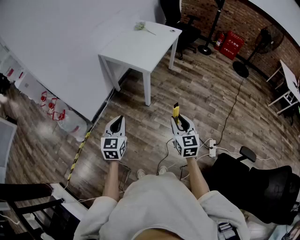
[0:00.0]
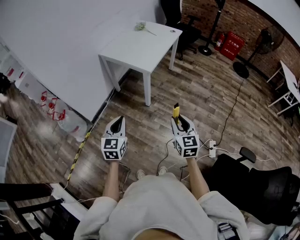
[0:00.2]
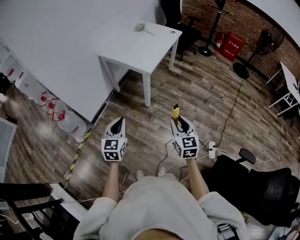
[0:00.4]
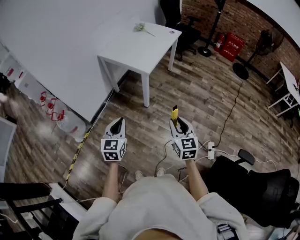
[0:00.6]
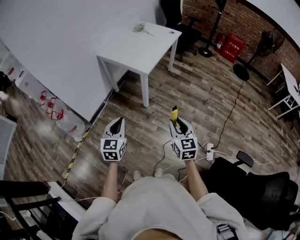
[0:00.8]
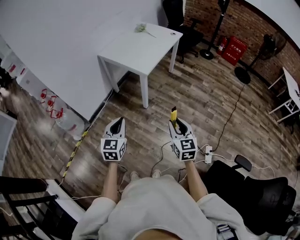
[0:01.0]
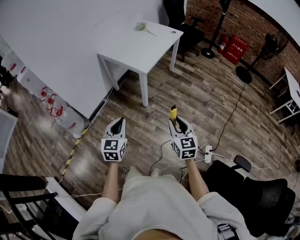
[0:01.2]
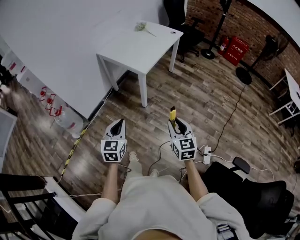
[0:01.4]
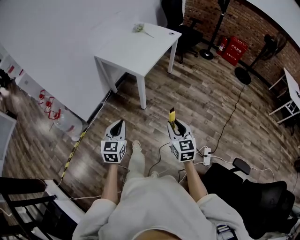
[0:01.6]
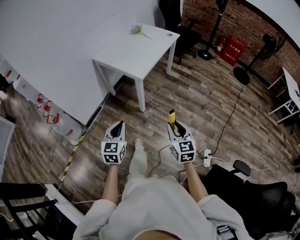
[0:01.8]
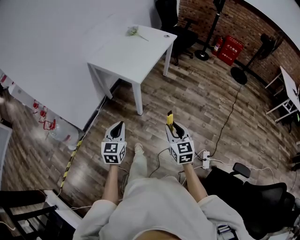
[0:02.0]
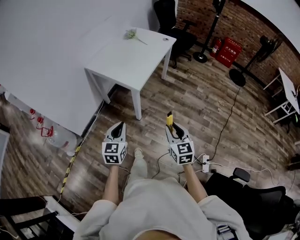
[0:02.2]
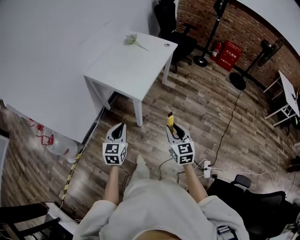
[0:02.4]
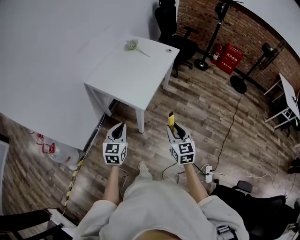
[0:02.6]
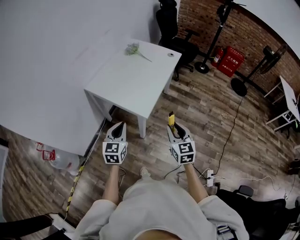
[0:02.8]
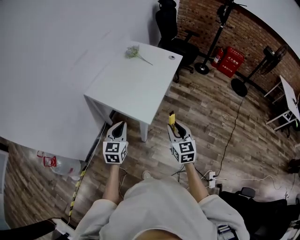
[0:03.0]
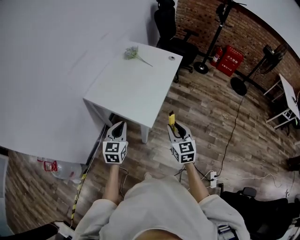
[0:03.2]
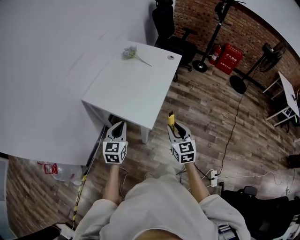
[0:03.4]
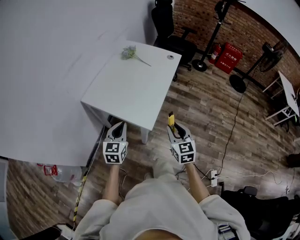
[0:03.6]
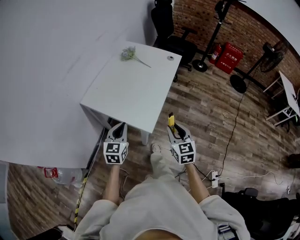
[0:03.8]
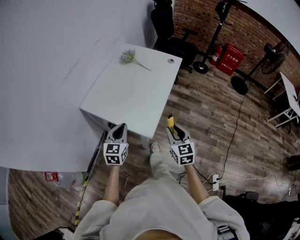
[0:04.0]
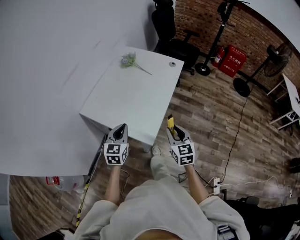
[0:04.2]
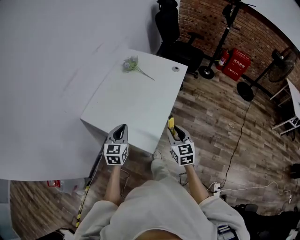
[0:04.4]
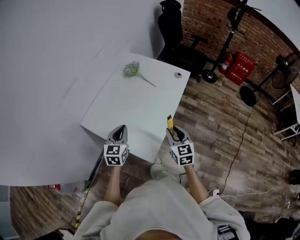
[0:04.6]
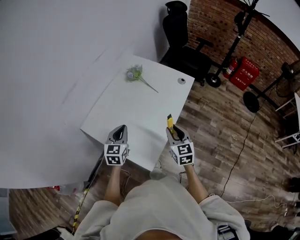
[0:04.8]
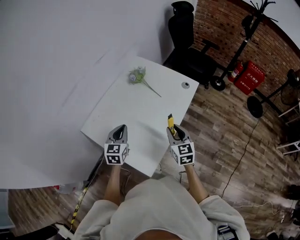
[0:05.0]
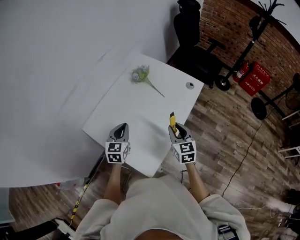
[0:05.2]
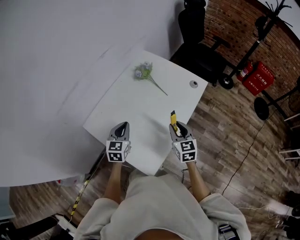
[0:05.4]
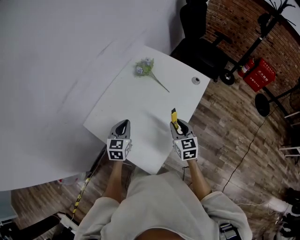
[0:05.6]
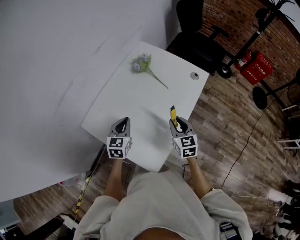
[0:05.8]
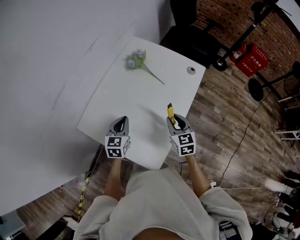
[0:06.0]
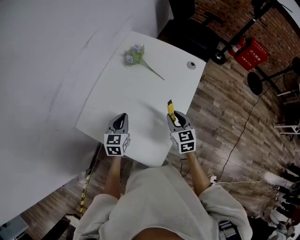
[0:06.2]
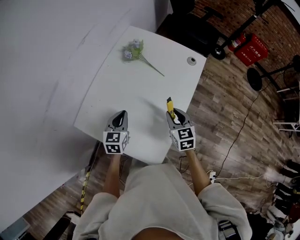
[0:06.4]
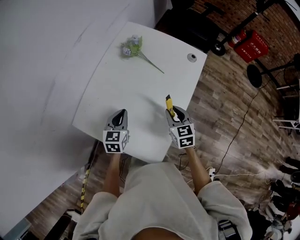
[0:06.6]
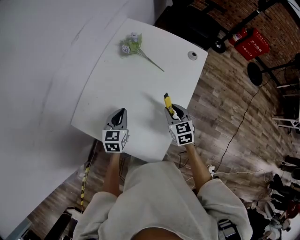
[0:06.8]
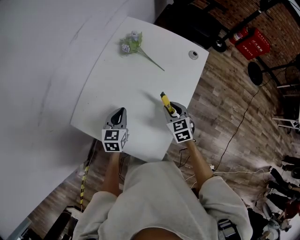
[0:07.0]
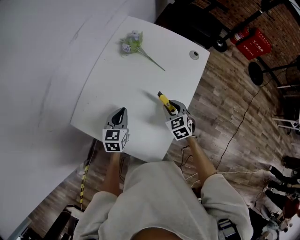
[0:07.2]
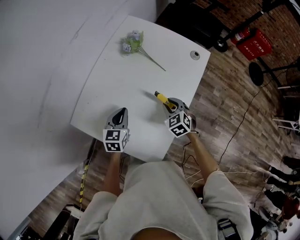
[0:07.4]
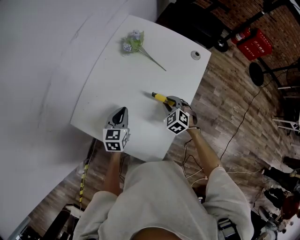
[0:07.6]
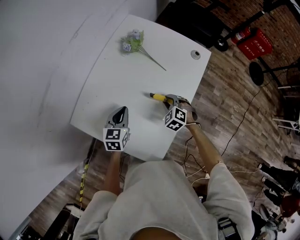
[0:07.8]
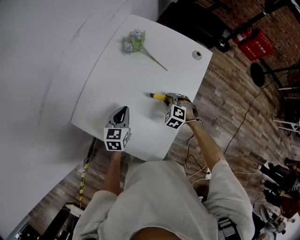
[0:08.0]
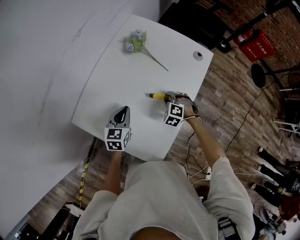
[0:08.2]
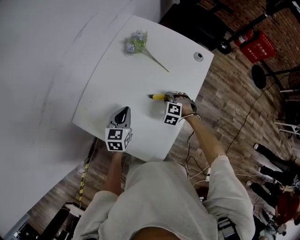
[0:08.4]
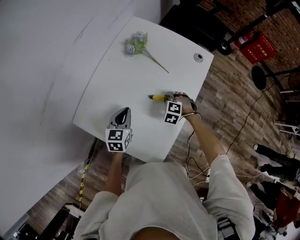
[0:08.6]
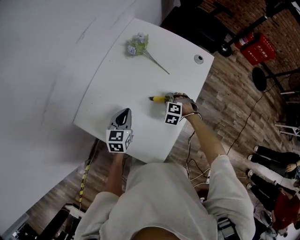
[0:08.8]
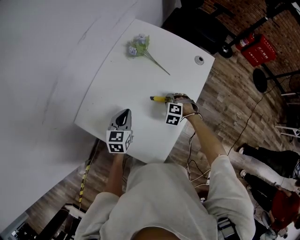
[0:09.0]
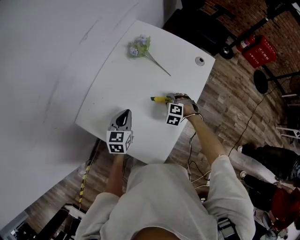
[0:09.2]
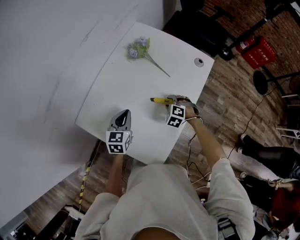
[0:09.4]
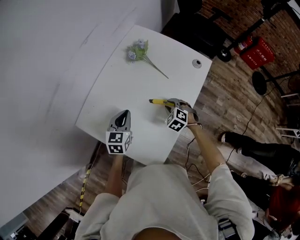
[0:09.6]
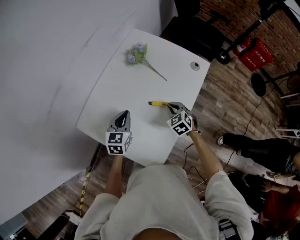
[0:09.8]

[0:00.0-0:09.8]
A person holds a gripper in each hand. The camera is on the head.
0:00.0 to 0:01.4: Both grippers travel together to the right, some 10 cm.
0:01.4 to 0:02.8: Both grippers travel together forward, approximately 40 cm.
0:02.8 to 0:04.2: The grippers both shift forward by about 20 cm.
0:04.2 to 0:05.6: The grippers both shift forward by approximately 30 cm.
0:05.6 to 0:07.0: The left gripper is displaced downward and forward by approximately 10 cm, while the right gripper shifts approximately 10 cm downward.
0:07.0 to 0:08.4: The right gripper heads downward, covering some 10 cm, and rolls counterclockwise, seen from behind, by some 50 degrees.
0:08.4 to 0:09.8: The right gripper is displaced upward by some 5 cm, rotates approximately 40 degrees, and closes.

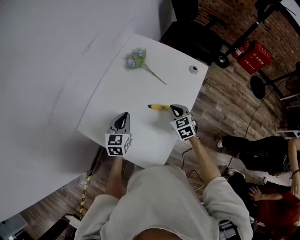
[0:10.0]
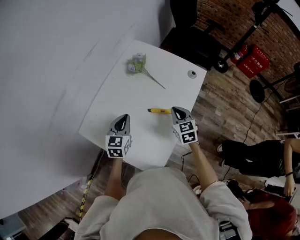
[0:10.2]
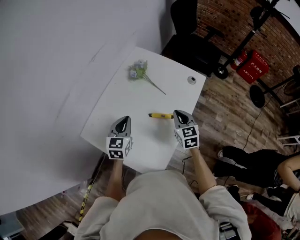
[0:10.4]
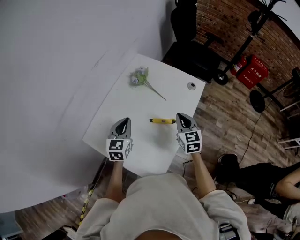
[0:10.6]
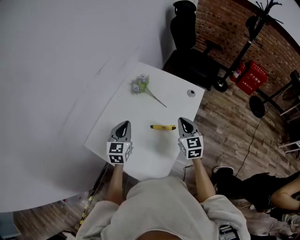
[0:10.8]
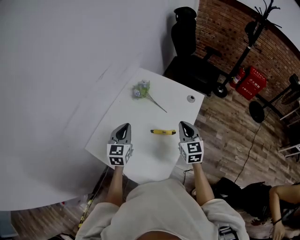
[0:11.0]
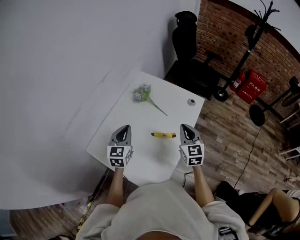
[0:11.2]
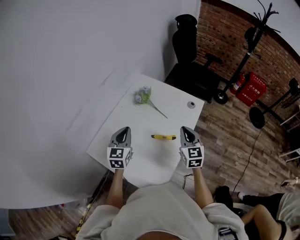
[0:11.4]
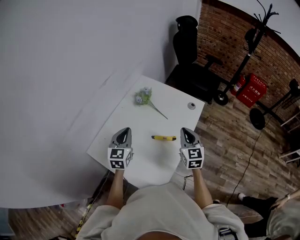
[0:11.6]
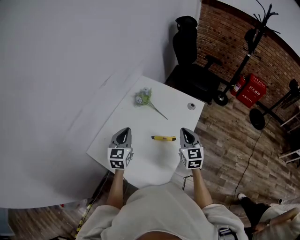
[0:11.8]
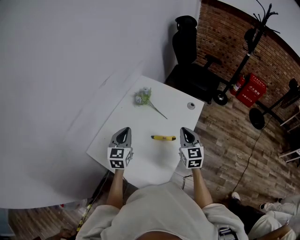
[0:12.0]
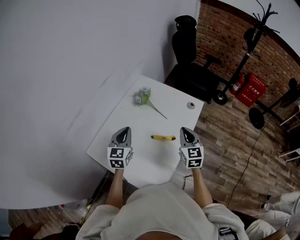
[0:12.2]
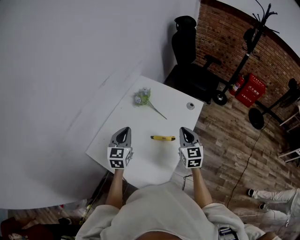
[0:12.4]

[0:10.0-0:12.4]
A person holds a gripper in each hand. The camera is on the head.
0:10.0 to 0:11.2: The left gripper moves upward, some 10 cm, while the right gripper moves upward, approximately 15 cm, and changes its angle by about 30 degrees.
0:11.2 to 0:12.4: Neither gripper changes place.

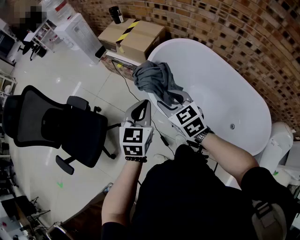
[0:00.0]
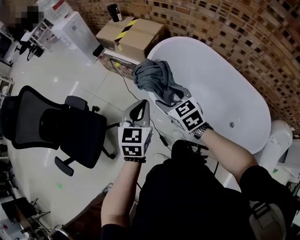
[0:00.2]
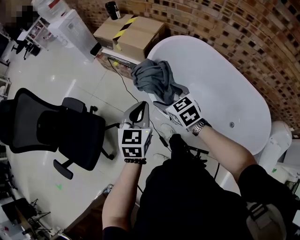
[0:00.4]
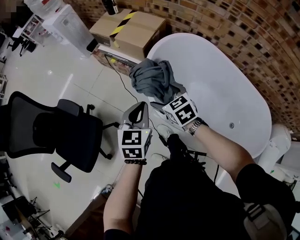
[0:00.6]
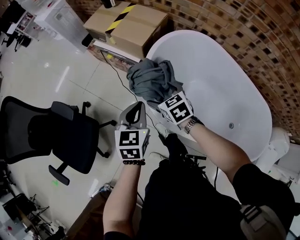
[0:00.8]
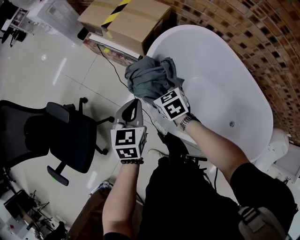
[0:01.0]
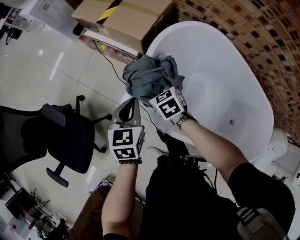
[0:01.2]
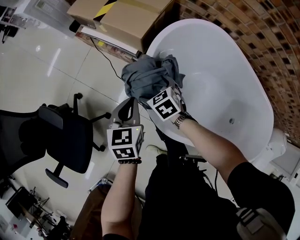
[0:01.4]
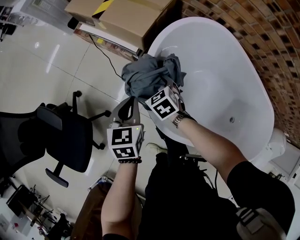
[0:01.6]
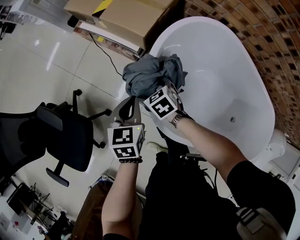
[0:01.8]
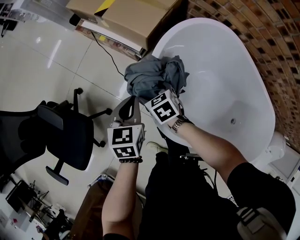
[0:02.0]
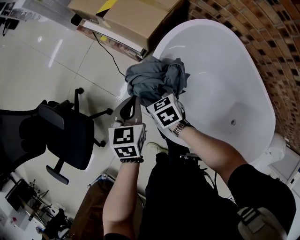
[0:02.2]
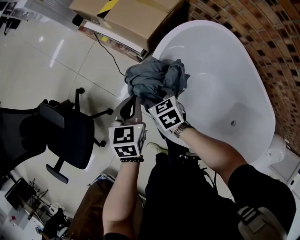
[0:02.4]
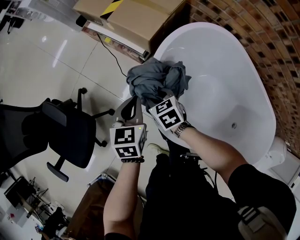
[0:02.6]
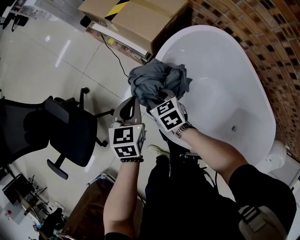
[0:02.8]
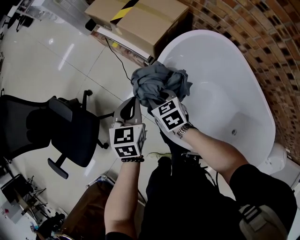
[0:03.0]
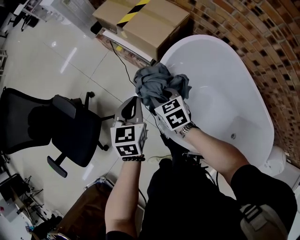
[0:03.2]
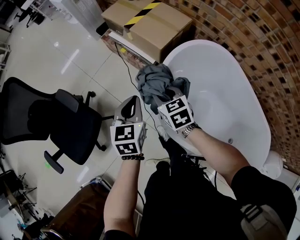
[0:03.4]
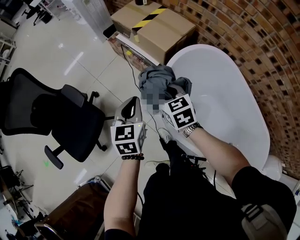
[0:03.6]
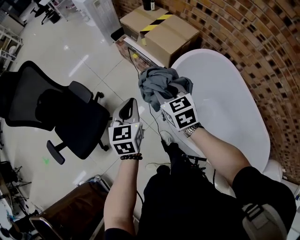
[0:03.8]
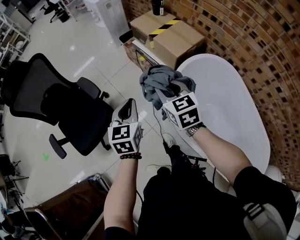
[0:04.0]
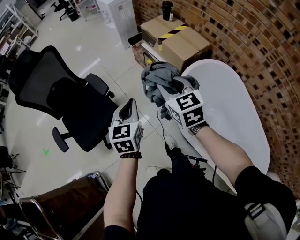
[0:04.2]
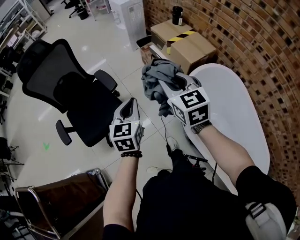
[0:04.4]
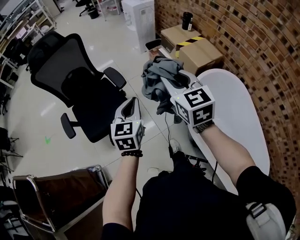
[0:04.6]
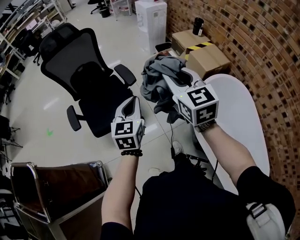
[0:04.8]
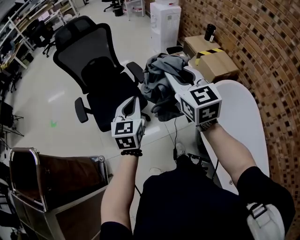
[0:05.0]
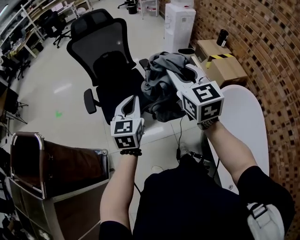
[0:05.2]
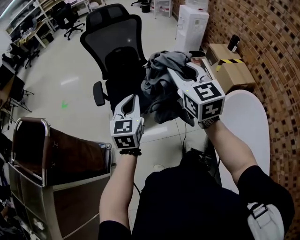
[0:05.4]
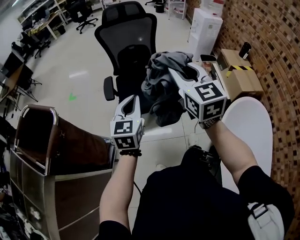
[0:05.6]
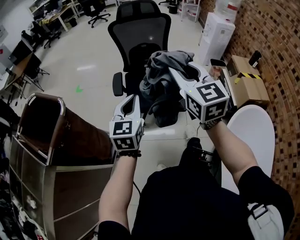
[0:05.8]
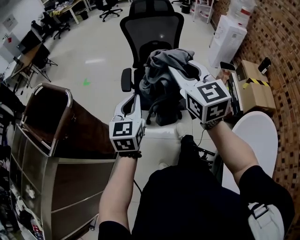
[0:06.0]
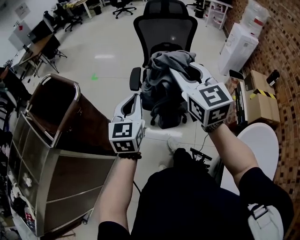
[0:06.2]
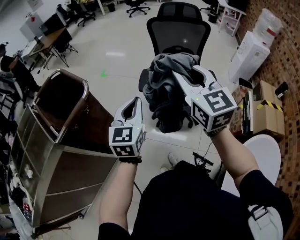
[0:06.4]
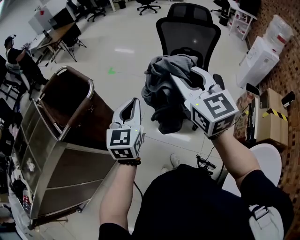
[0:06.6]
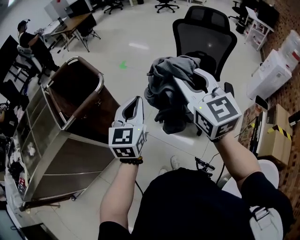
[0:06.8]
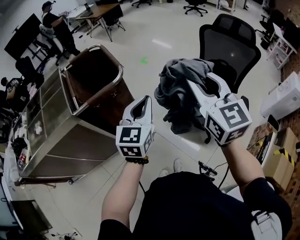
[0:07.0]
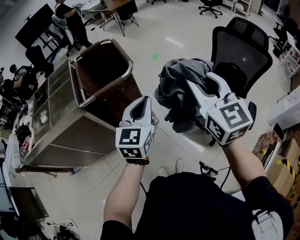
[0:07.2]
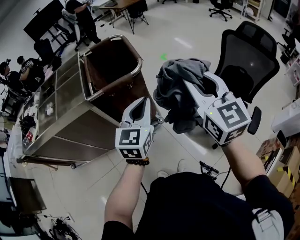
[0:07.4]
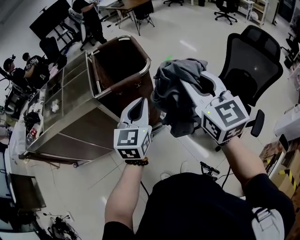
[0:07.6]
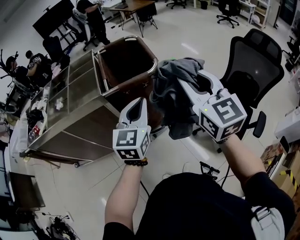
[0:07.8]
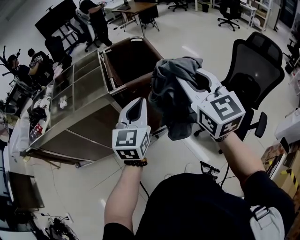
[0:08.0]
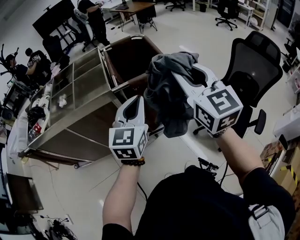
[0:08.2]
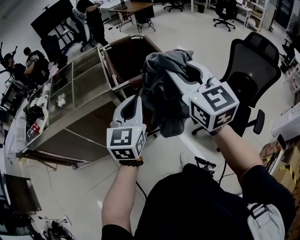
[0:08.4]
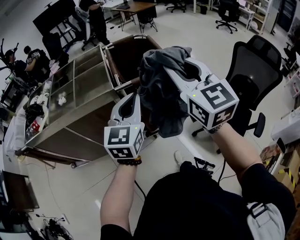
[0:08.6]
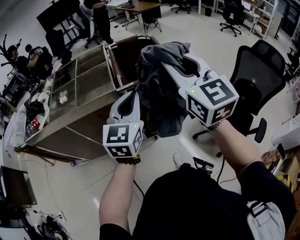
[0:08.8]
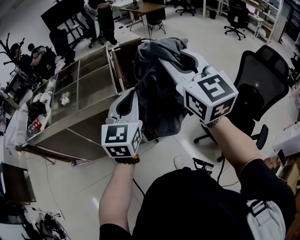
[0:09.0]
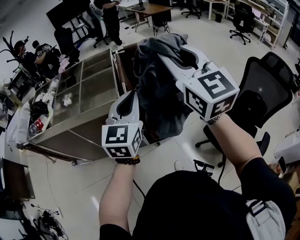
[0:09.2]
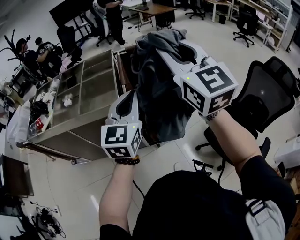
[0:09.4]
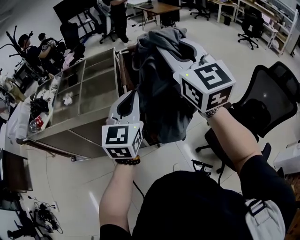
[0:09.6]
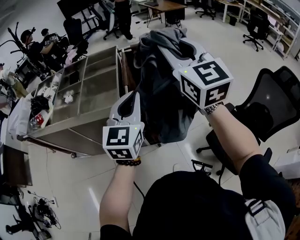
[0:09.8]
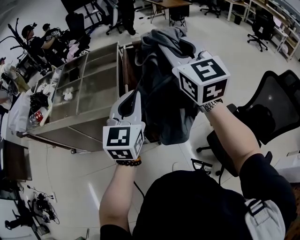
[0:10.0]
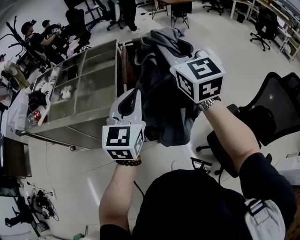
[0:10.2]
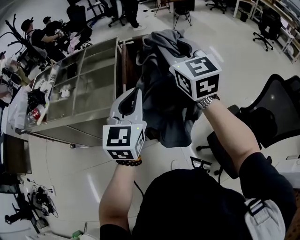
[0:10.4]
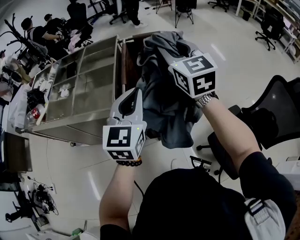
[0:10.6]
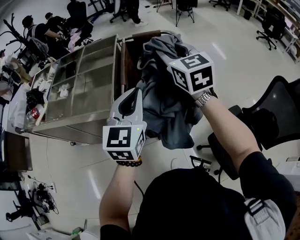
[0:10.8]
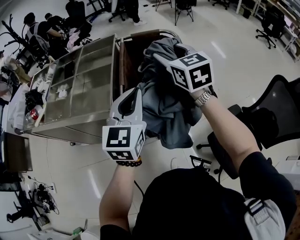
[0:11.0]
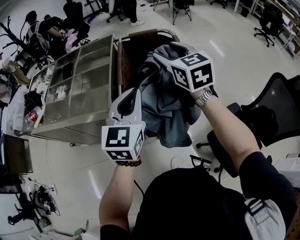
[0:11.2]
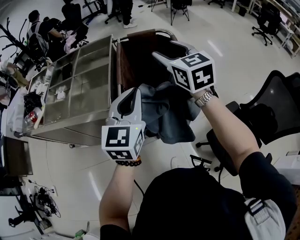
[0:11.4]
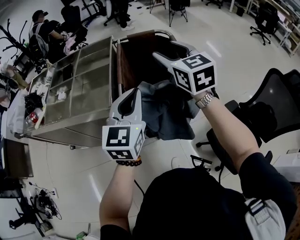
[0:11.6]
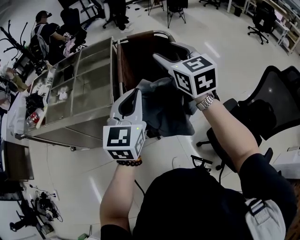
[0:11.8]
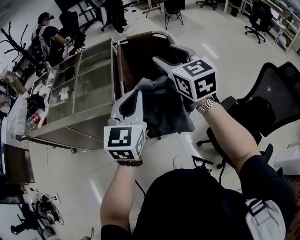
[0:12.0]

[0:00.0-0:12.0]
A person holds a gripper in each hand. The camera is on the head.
0:00.0 to 0:01.6: The grippers both shift downward and forward by roughly 50 cm. The left gripper swivels roughly 20 degrees, while the right gripper changes its angle by roughly 30 degrees, and opens.
0:01.6 to 0:03.0: The left gripper is displaced upward by some 5 cm; the right gripper heads upward, covering about 10 cm, and closes its fingers.
0:03.0 to 0:04.4: The right gripper moves upward, approximately 50 cm, and changes its angle by approximately 30 degrees. Meanwhile the left gripper heads upward, to the left and backward, covering about 40 cm, and turns by roughly 20 degrees.
0:04.4 to 0:06.0: Both grippers are carried approximately 40 cm. The left gripper turns by some 30 degrees, while the right gripper swivels approximately 40 degrees.
0:06.0 to 0:07.6: The left gripper ends up some 15 cm from where it was, and rotates roughly 40 degrees. Meanwhile the right gripper changes place by about 15 cm, and changes its angle by about 50 degrees.
0:07.6 to 0:09.0: The two grippers go some 20 cm to the left and upward.
0:09.0 to 0:10.4: The left gripper travels forward by approximately 15 cm, while the right gripper travels forward by about 25 cm.
